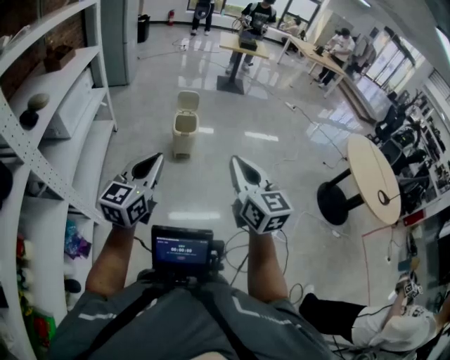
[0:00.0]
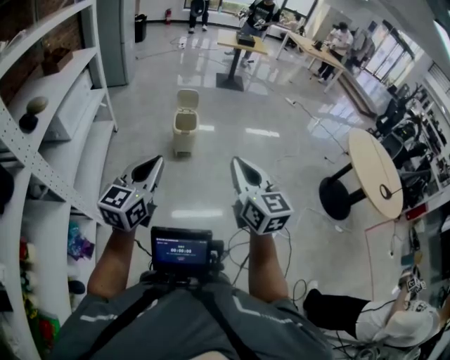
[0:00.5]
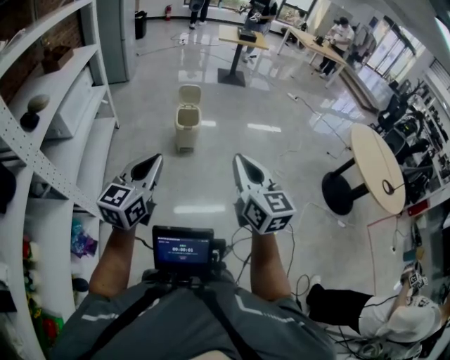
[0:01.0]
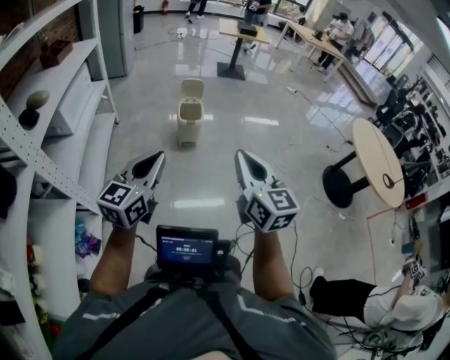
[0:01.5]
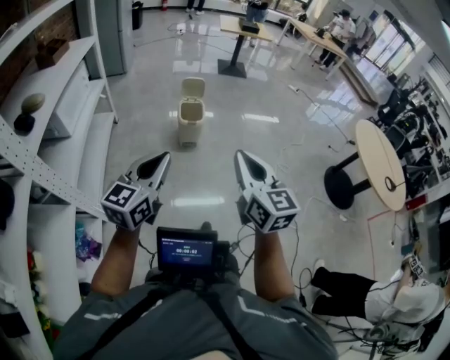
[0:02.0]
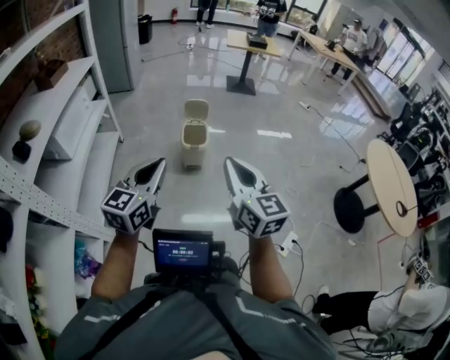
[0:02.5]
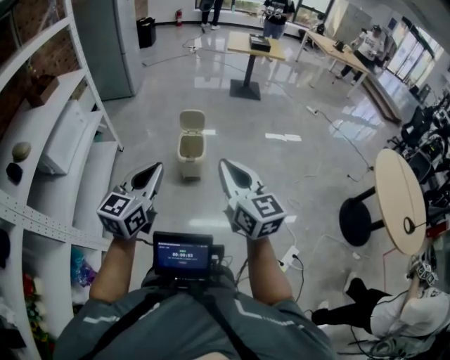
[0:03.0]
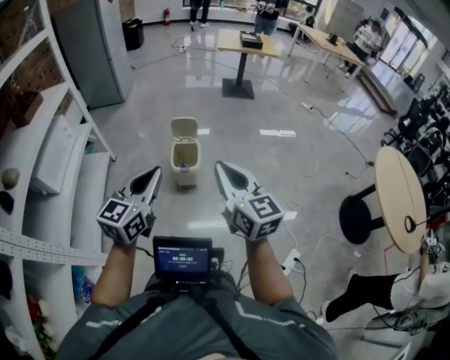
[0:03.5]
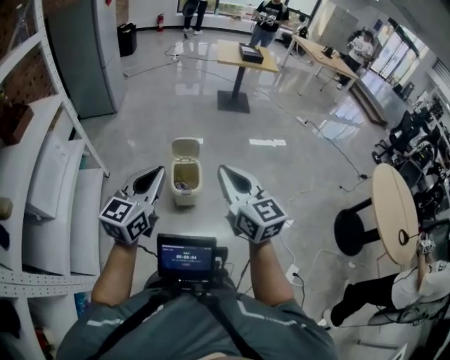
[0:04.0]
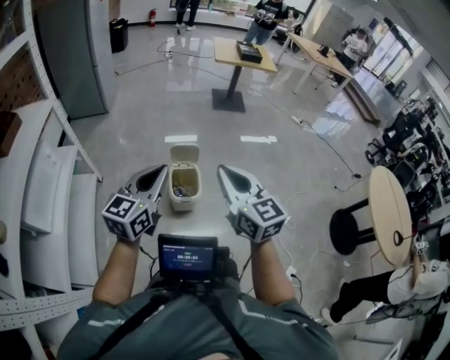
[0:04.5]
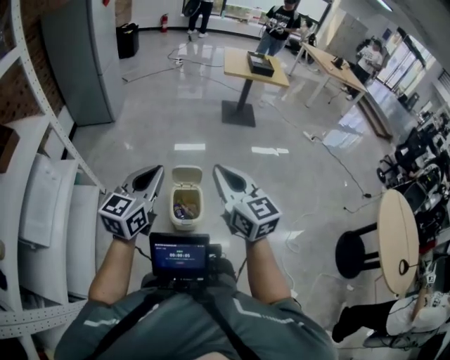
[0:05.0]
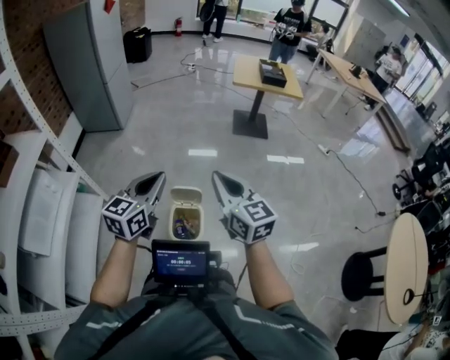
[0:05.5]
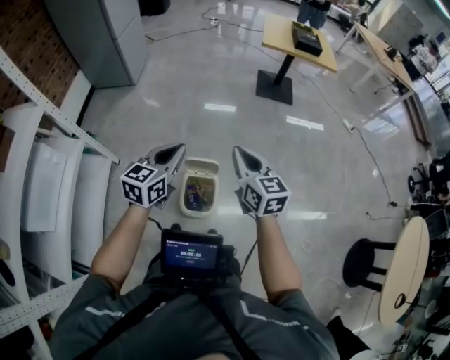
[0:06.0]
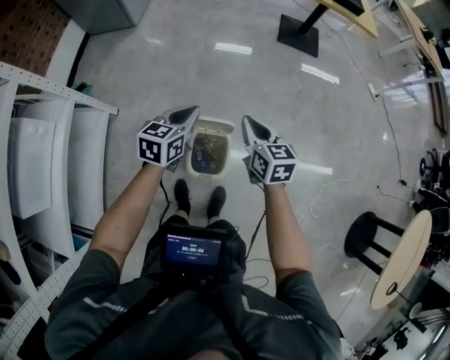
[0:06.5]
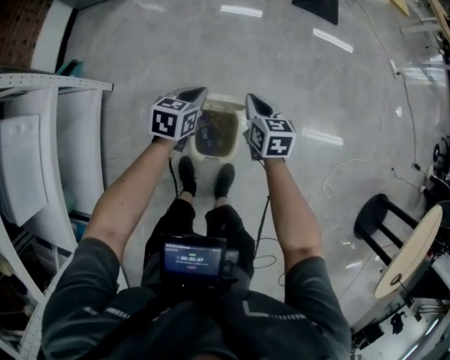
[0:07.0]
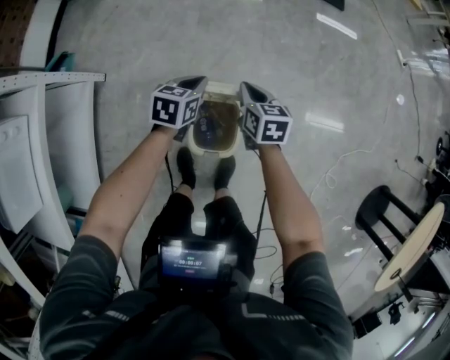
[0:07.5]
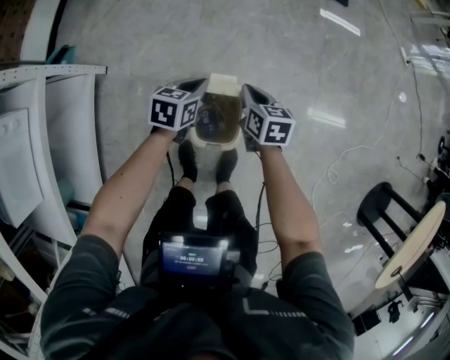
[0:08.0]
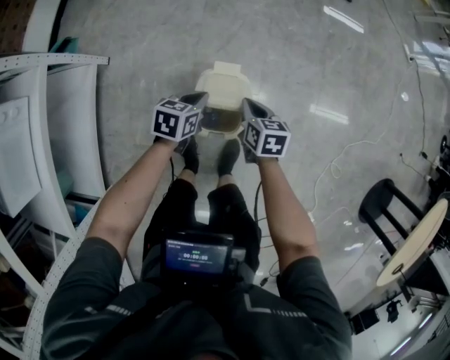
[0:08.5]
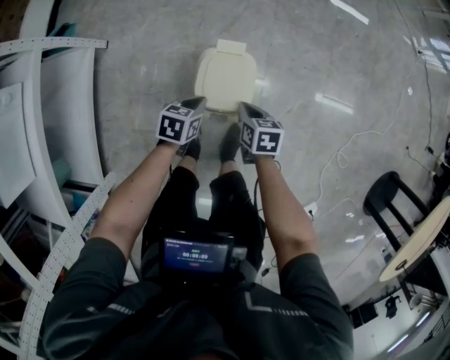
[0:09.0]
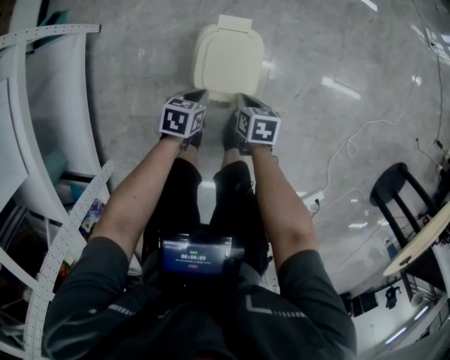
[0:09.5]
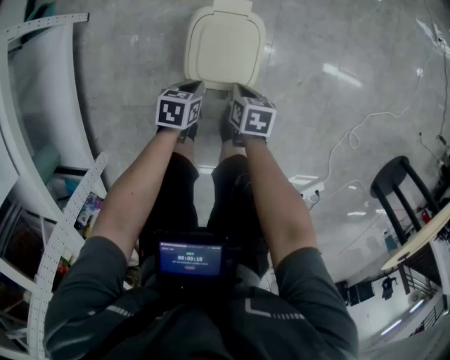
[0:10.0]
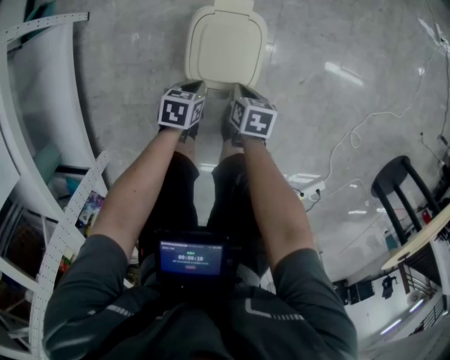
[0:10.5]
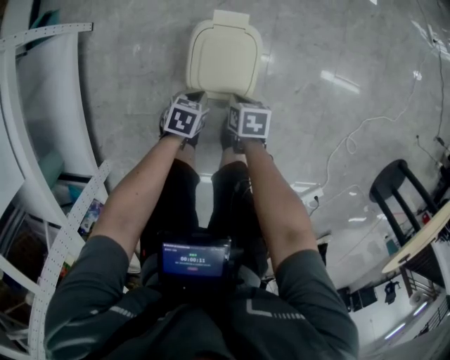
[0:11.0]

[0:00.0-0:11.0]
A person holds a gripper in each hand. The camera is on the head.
0.0 to 2.0 s: The right gripper travels to the left by approximately 5 cm, while the left gripper changes place by some 5 cm.
2.0 to 3.5 s: Both grippers travel together forward, about 30 cm.
3.5 to 5.5 s: Both grippers are carried forward, about 40 cm.
5.5 to 7.5 s: Both grippers move downward and forward, some 50 cm. The left gripper tilts its fingers approximately 40 degrees downward; the right gripper tips its fingers downward by roughly 40 degrees.
7.5 to 9.0 s: Both grippers travel together backward and downward, roughly 25 cm.
9.0 to 11.0 s: The two grippers go some 10 cm downward.

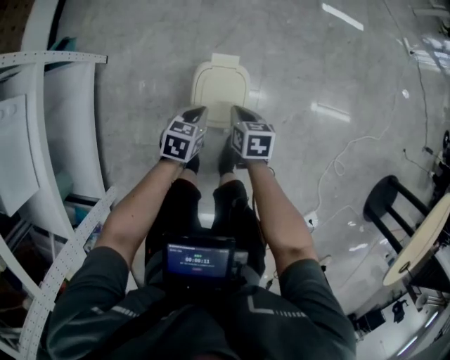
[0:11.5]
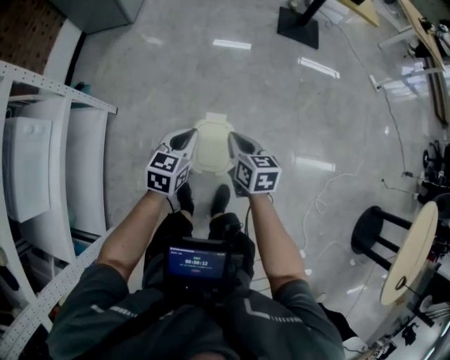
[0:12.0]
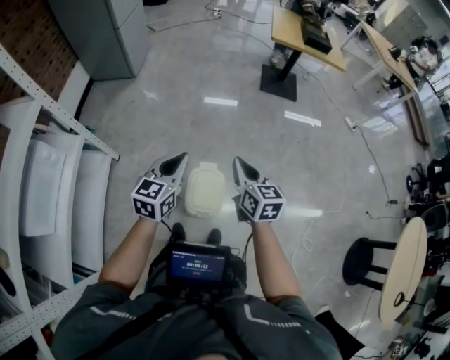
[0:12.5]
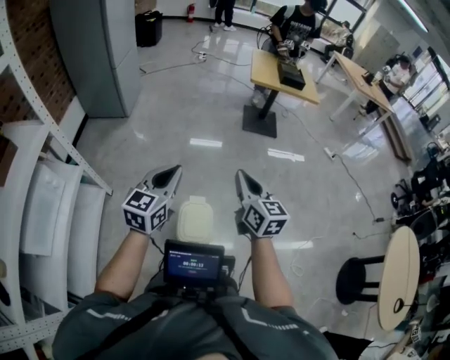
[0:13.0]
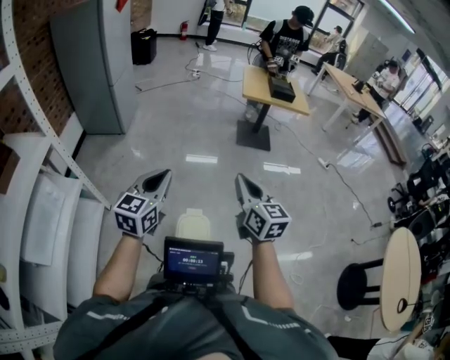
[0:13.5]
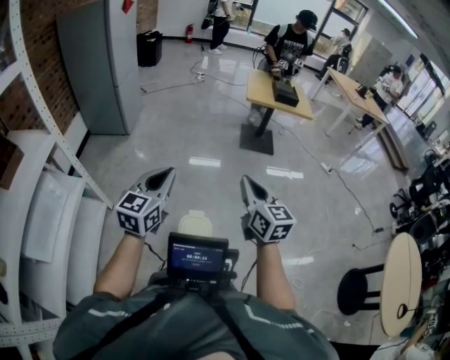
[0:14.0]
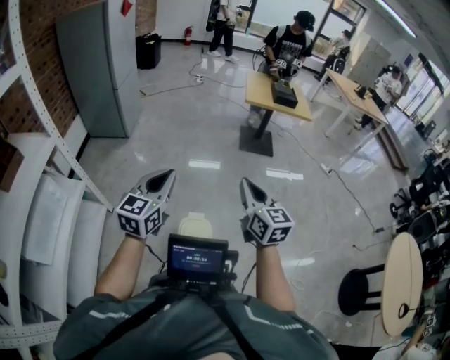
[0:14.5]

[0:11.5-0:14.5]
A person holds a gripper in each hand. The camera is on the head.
11.5 to 13.0 s: Both grippers move upward, roughly 50 cm. The left gripper tilts its fingers about 40 degrees upward, while the right gripper tips its fingers upward by some 40 degrees.
13.0 to 14.5 s: Both grippers travel together upward, some 5 cm.

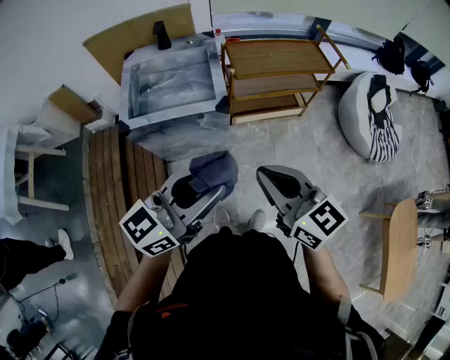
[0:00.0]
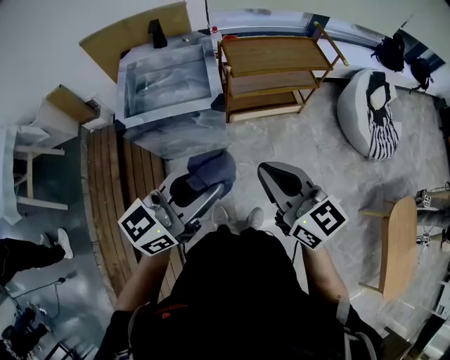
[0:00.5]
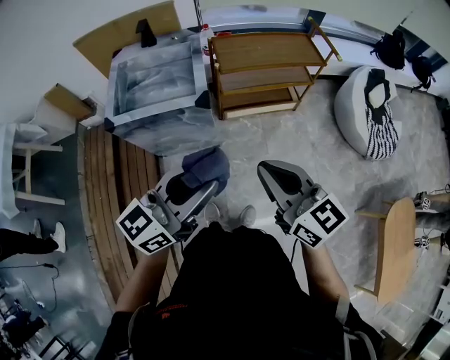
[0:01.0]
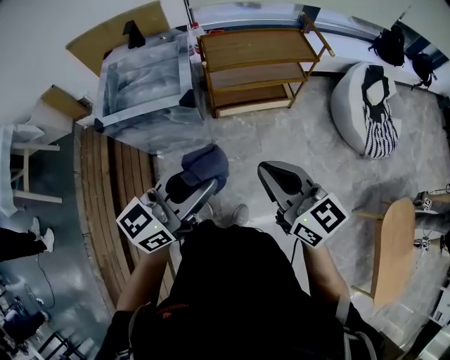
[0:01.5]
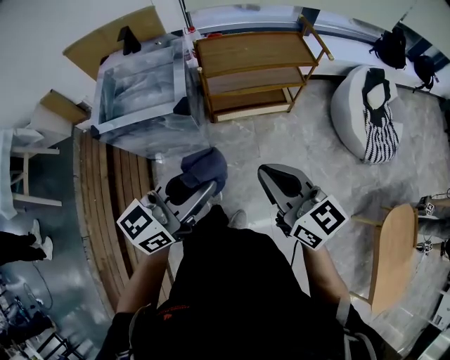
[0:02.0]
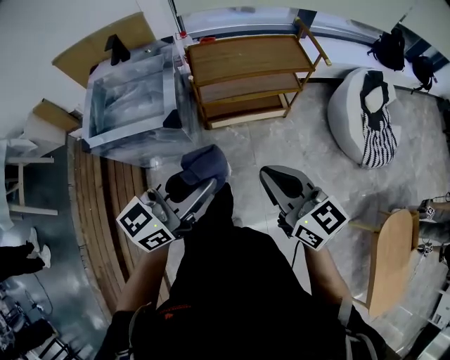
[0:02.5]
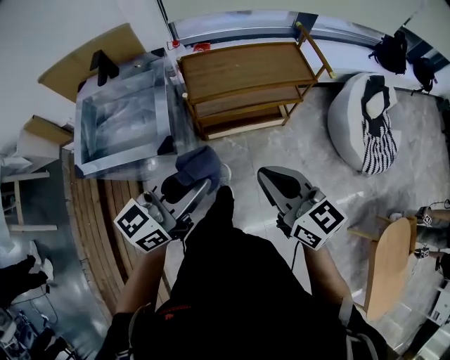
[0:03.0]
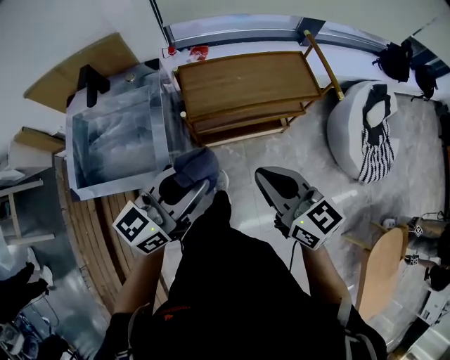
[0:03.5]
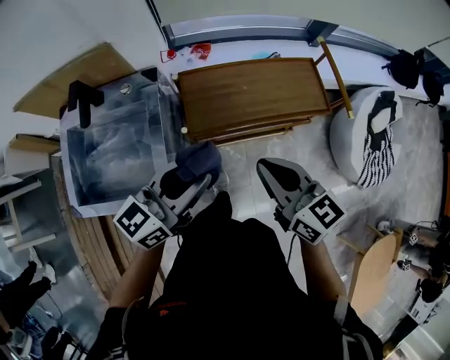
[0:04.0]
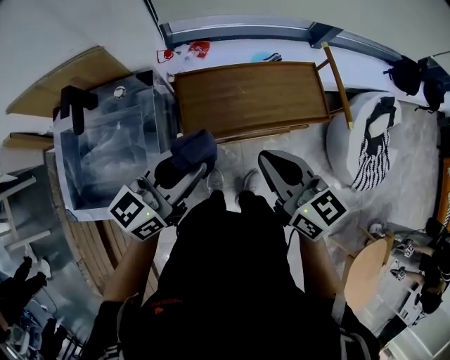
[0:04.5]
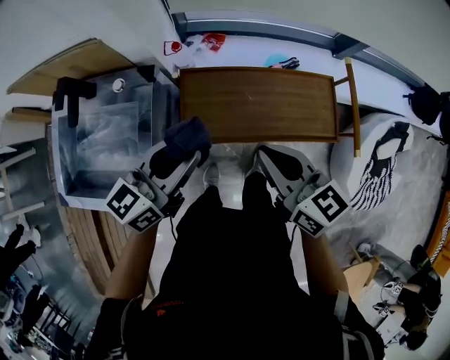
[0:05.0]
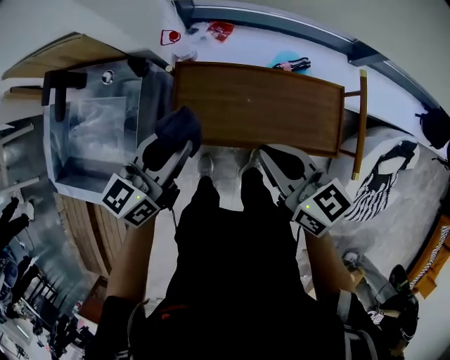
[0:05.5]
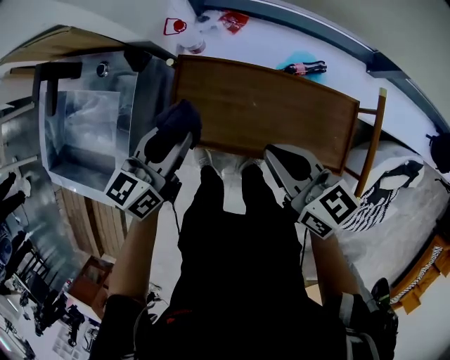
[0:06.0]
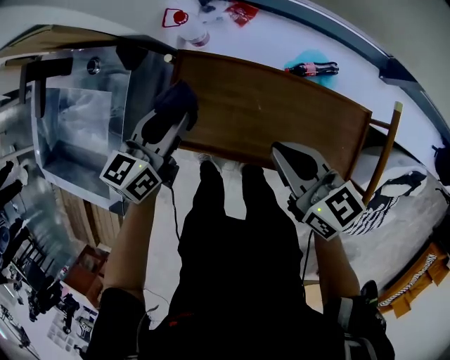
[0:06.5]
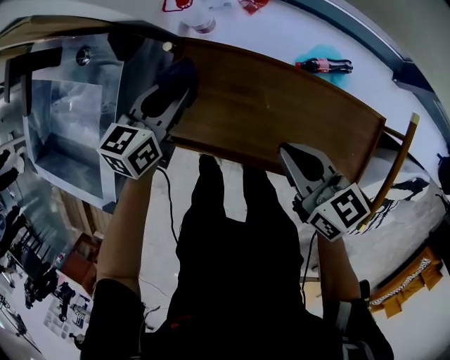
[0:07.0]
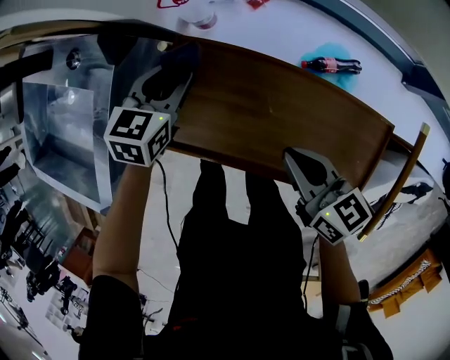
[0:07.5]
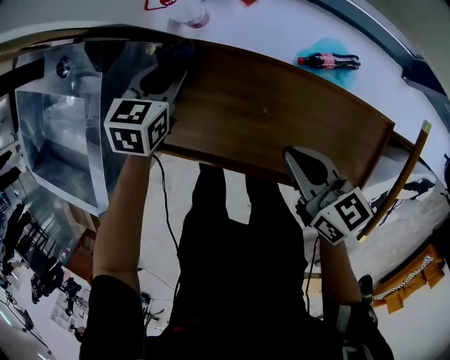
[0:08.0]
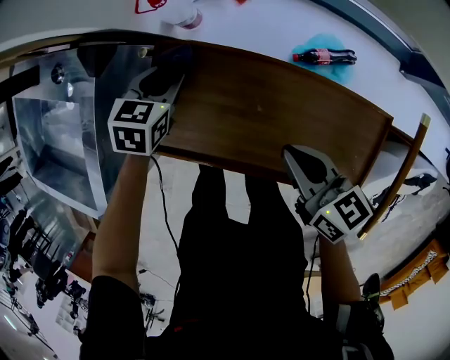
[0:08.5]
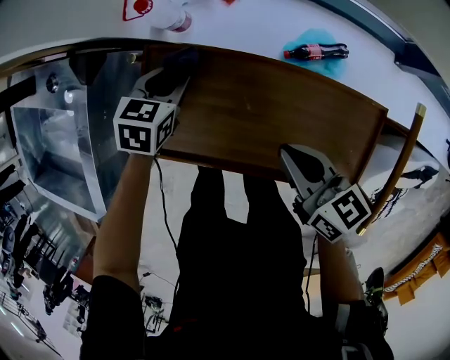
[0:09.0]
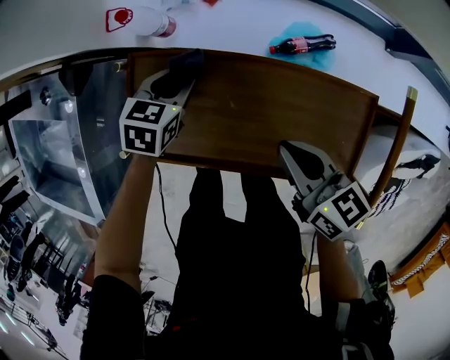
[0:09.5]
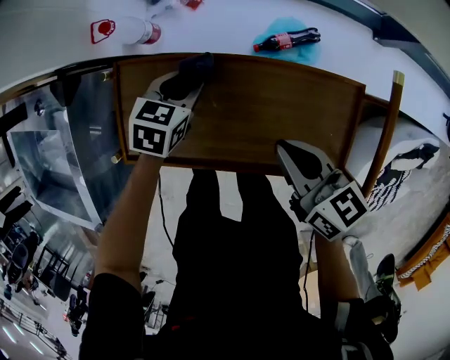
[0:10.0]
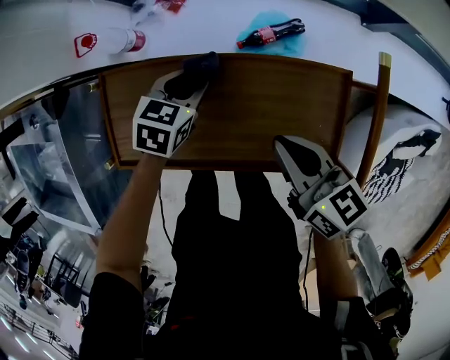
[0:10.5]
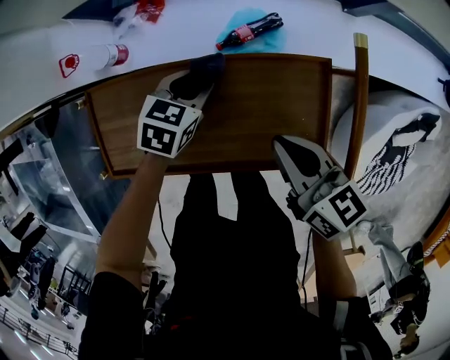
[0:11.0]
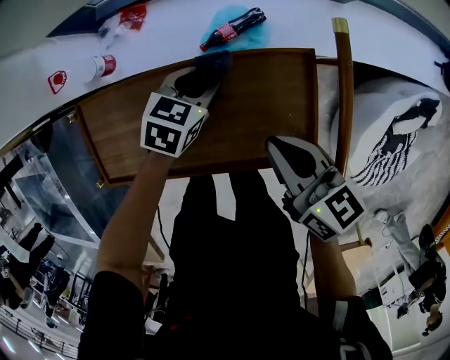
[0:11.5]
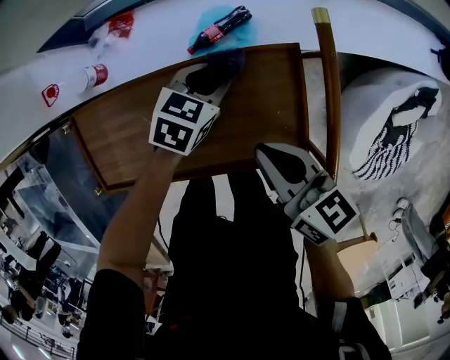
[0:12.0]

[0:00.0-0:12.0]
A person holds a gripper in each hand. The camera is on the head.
0.0 to 2.0 s: The grippers both shift to the right by about 20 cm.
2.0 to 4.0 s: Both grippers are carried forward, about 40 cm.
4.0 to 6.0 s: The left gripper changes place by approximately 25 cm, and swivels some 40 degrees. Meanwhile the right gripper shifts by approximately 25 cm, and rotates roughly 30 degrees.
6.0 to 8.0 s: The left gripper goes approximately 25 cm downward and forward, and tilts its fingers approximately 30 degrees downward, while the right gripper goes roughly 15 cm downward.
8.0 to 10.0 s: The right gripper is displaced to the right by about 10 cm, while the left gripper travels to the right by approximately 15 cm.
10.0 to 12.0 s: The left gripper shifts approximately 25 cm to the right, and swivels approximately 20 degrees. The right gripper moves to the right, approximately 10 cm.

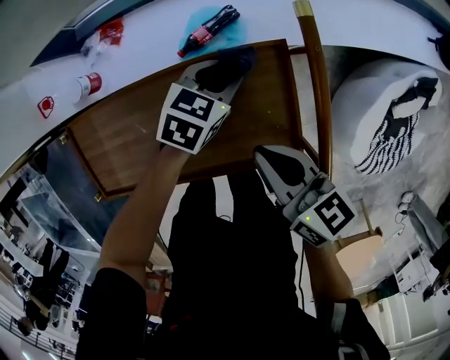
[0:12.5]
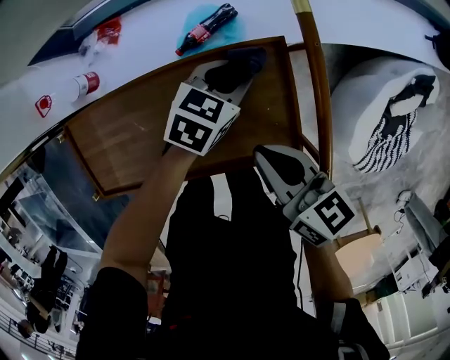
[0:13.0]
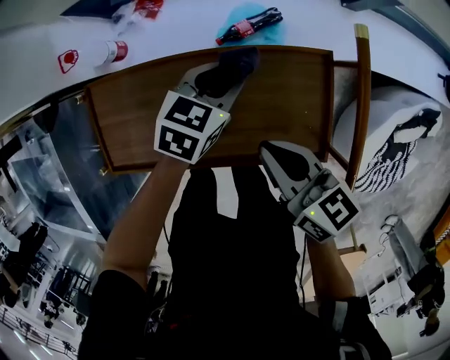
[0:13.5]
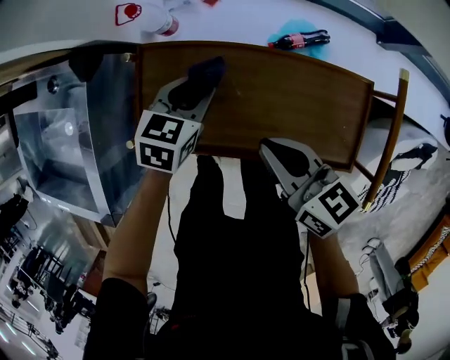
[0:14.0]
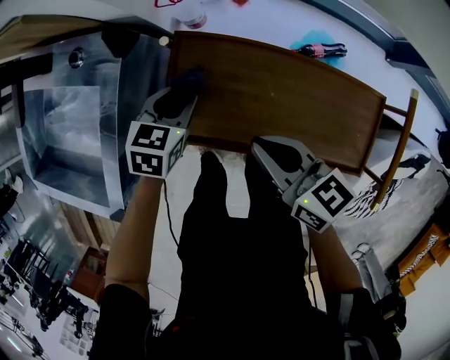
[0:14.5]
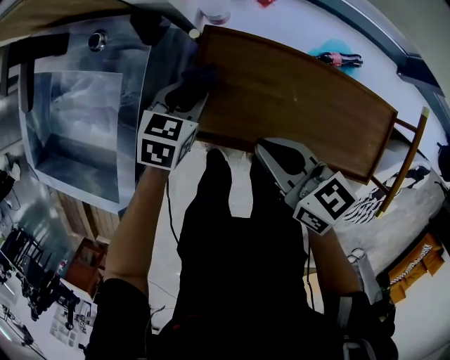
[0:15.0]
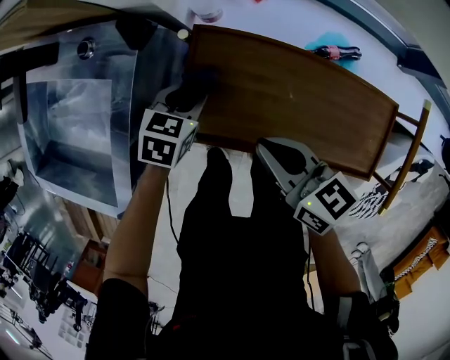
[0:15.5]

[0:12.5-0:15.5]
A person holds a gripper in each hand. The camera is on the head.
12.5 to 14.0 s: The right gripper ends up about 25 cm from where it was, and changes its angle by about 20 degrees. Meanwhile the left gripper ends up about 35 cm from where it was, and changes its angle by approximately 30 degrees.
14.0 to 15.5 s: The grippers both shift to the left by roughly 15 cm.
